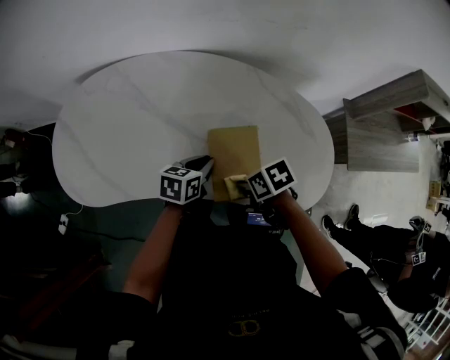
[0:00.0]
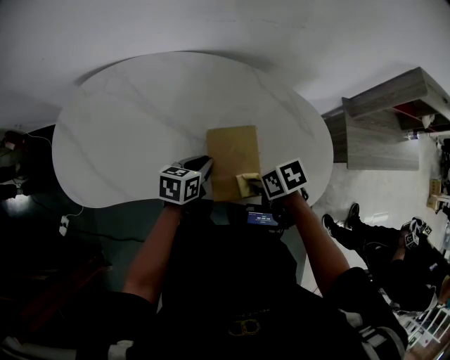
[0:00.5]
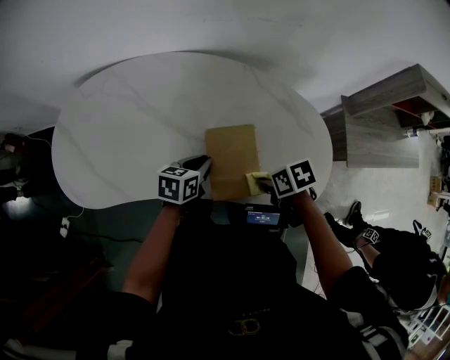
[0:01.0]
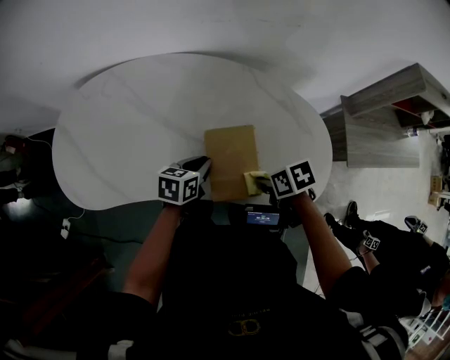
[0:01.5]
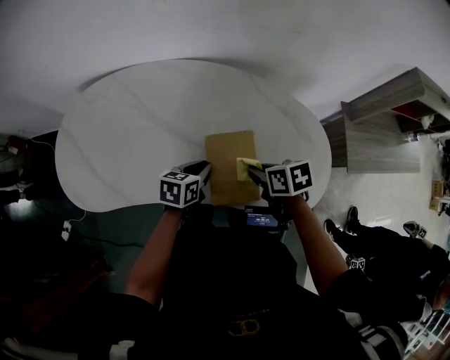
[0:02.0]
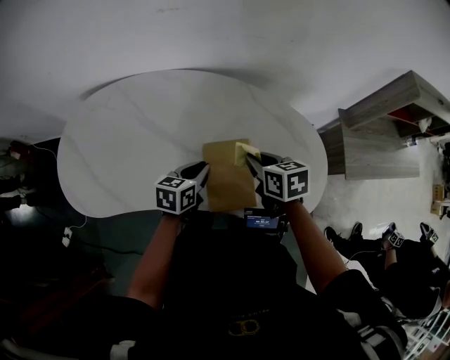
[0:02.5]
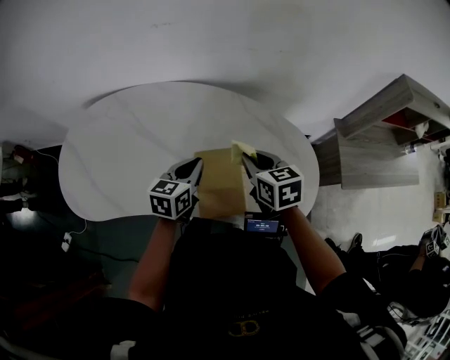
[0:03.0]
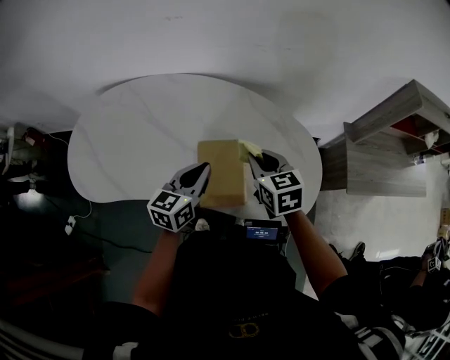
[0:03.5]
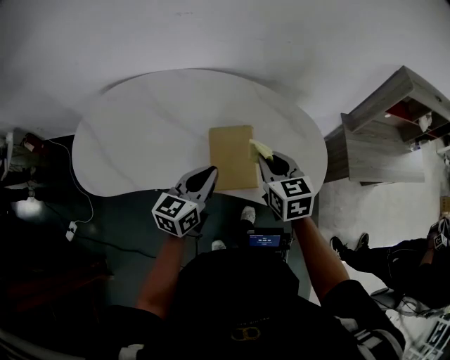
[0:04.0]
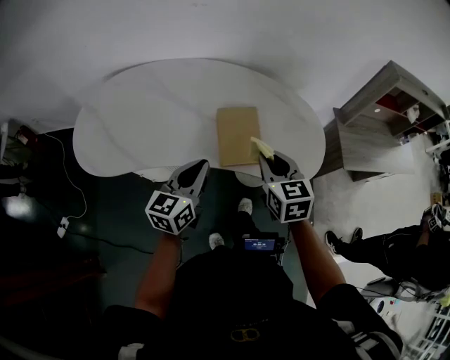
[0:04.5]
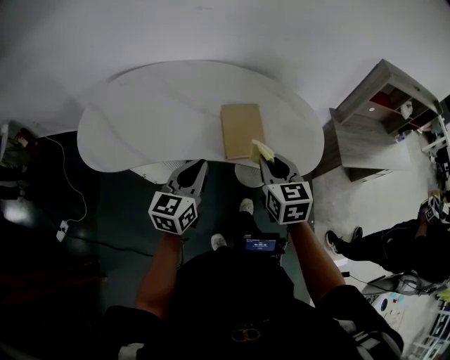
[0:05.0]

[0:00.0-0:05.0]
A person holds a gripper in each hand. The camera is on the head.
0:00.0 to 0:02.5: The right gripper moves approximately 15 cm, and swivels some 40 degrees.
0:02.5 to 0:05.0: Both grippers travel together backward and upward, roughly 25 cm. The left gripper changes its angle by some 30 degrees. Meanwhile the right gripper turns by about 30 degrees.

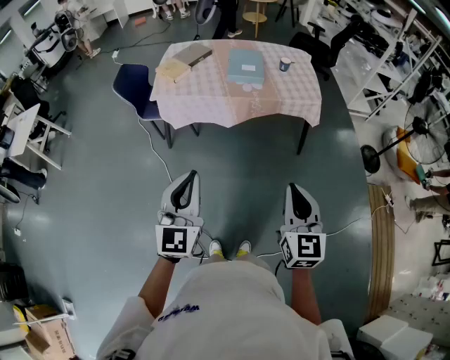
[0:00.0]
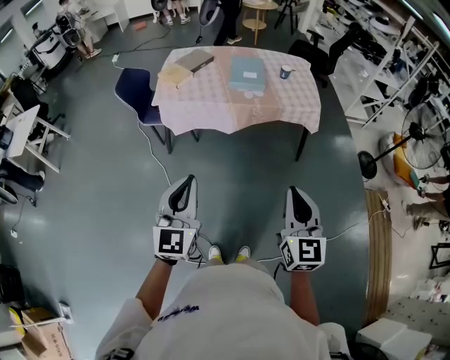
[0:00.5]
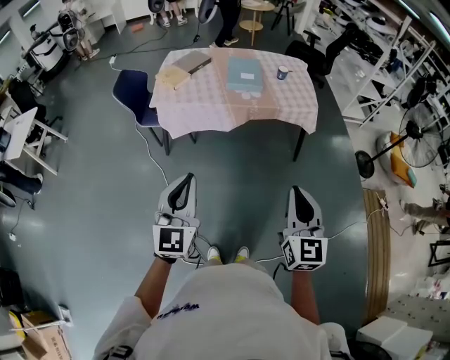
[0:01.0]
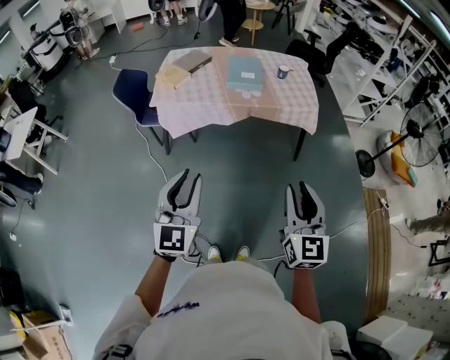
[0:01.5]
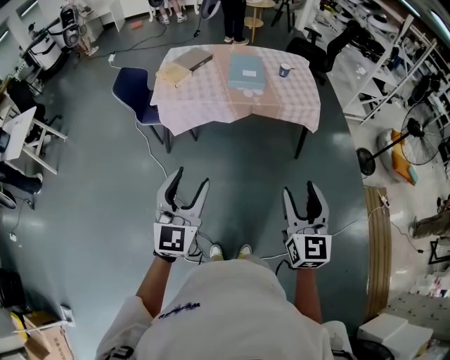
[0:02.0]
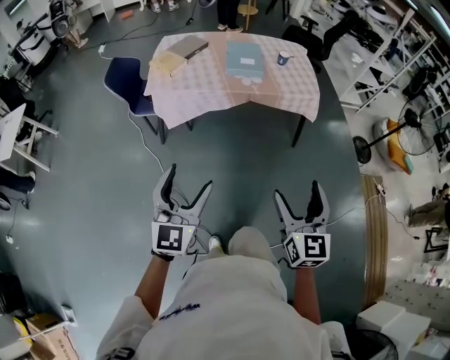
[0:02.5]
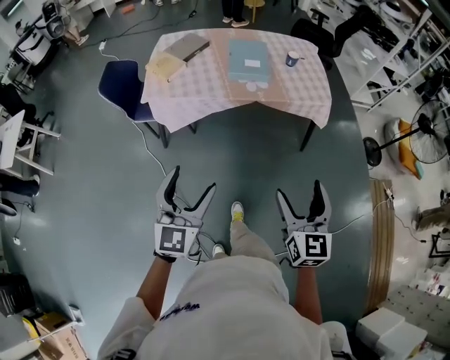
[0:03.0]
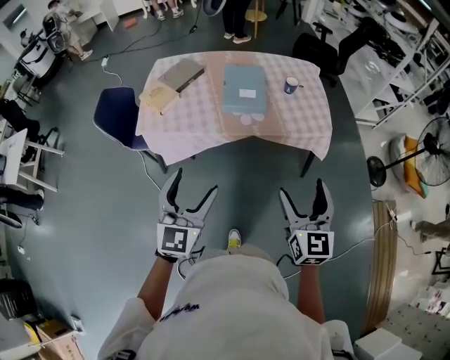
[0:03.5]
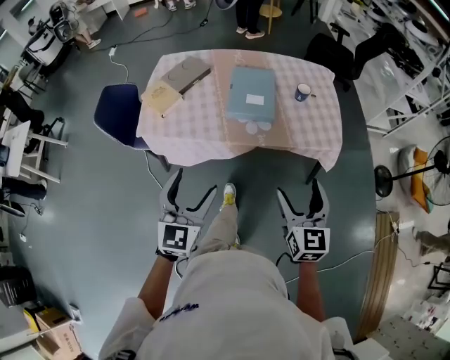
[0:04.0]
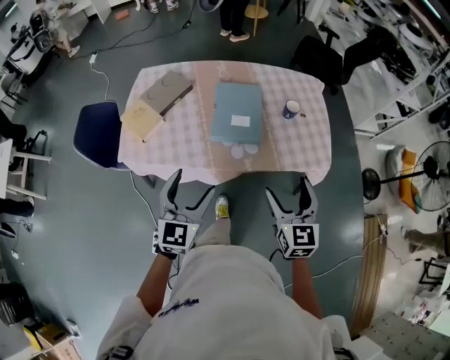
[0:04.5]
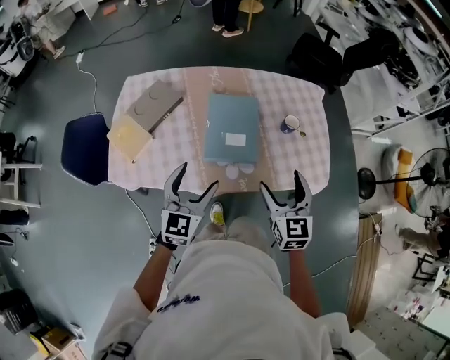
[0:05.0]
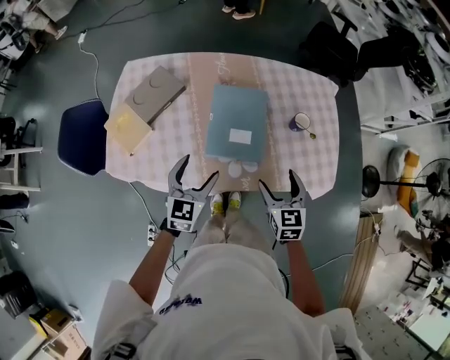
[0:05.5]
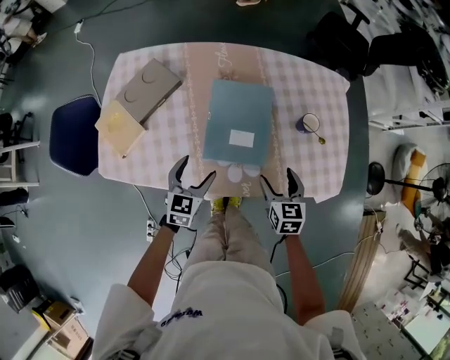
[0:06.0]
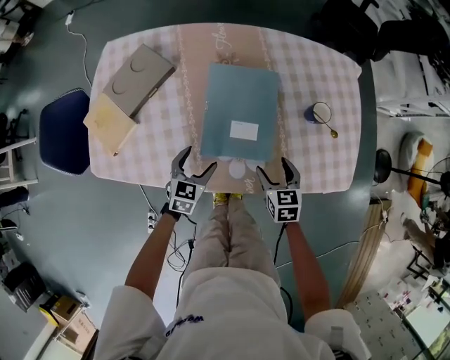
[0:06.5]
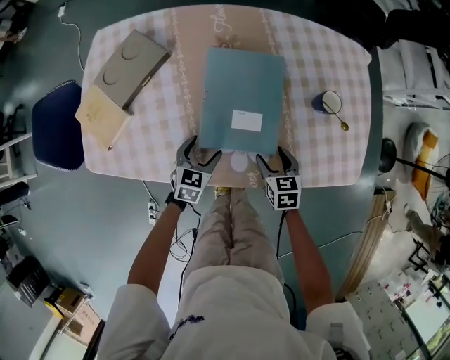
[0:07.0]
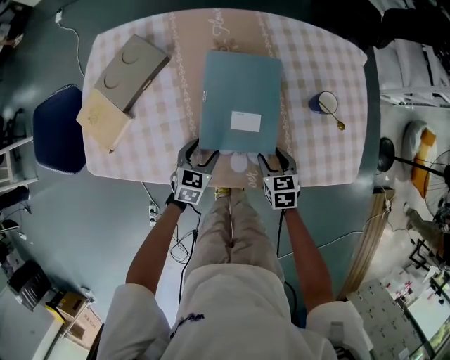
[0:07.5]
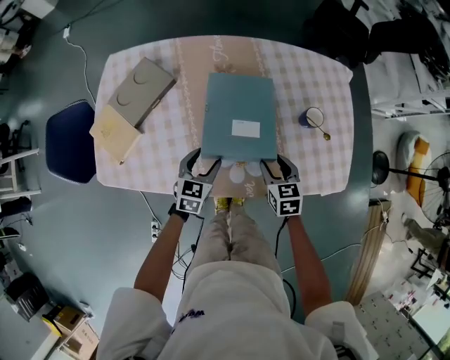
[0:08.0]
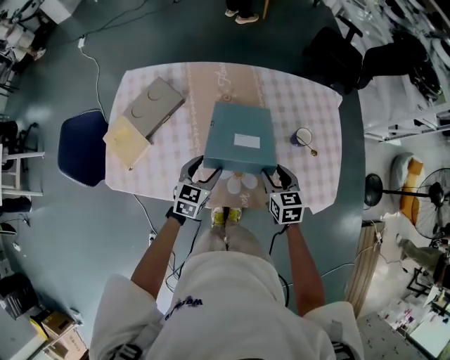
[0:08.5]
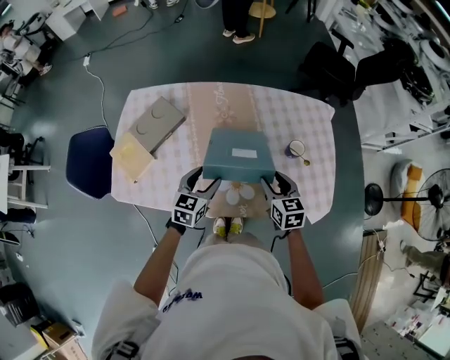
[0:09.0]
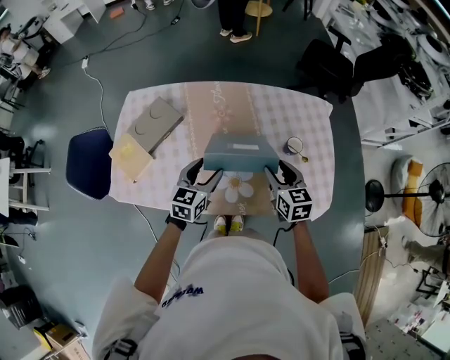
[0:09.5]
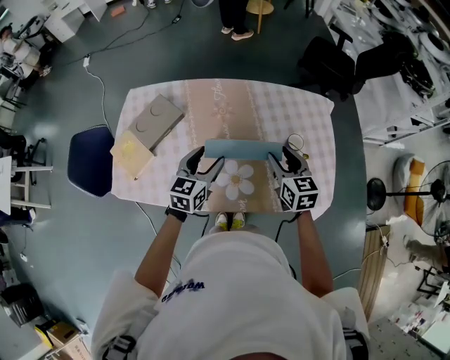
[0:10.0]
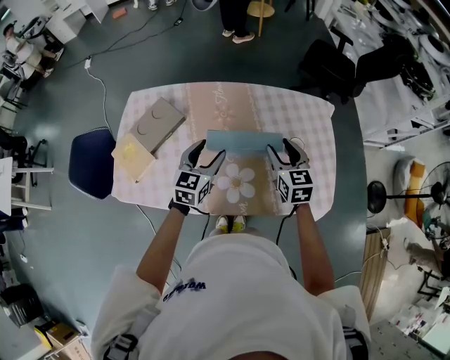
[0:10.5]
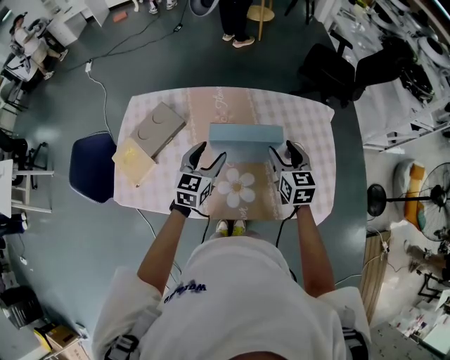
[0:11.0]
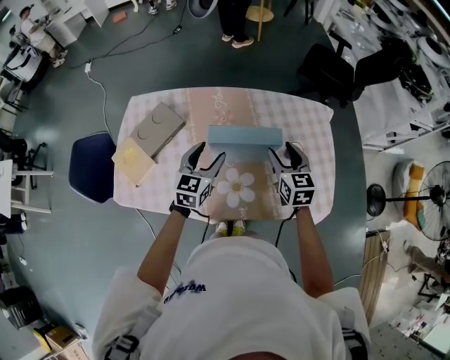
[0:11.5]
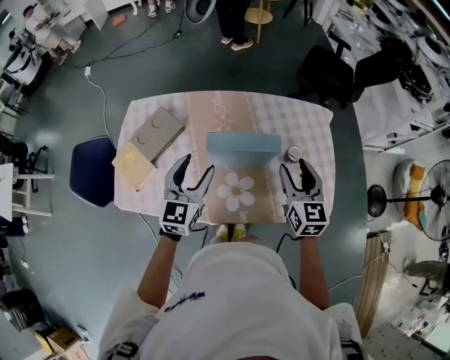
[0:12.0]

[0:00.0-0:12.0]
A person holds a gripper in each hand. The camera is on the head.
0:00.0 to 0:02.0: The left gripper opens; the right gripper opens.
0:02.0 to 0:04.0: The two grippers go roughly 40 cm forward. The right gripper opens.
0:04.0 to 0:06.0: Both grippers move forward and downward, about 40 cm. The left gripper turns by about 20 degrees, while the right gripper swivels roughly 30 degrees.
0:06.0 to 0:08.0: The two grippers go approximately 5 cm downward. The right gripper closes.
0:08.0 to 0:10.0: The two grippers go approximately 20 cm upward.
0:10.0 to 0:12.0: The grippers both shift upward by some 10 cm.

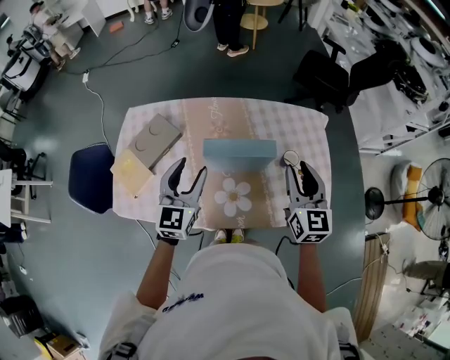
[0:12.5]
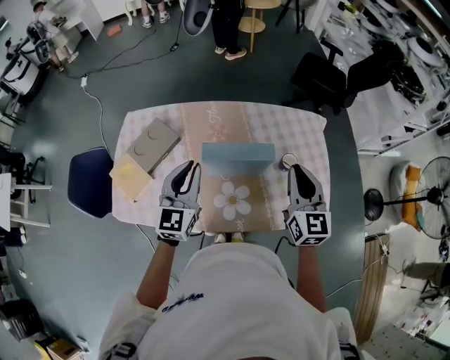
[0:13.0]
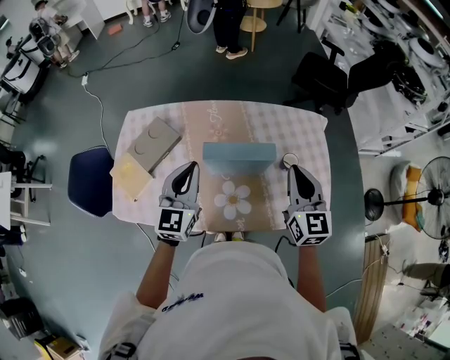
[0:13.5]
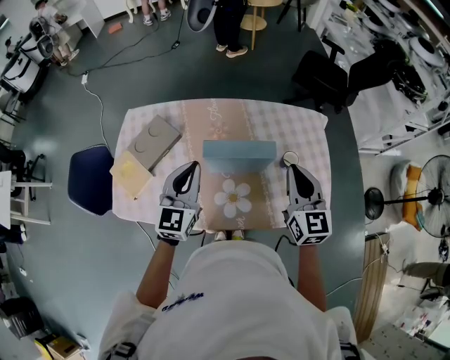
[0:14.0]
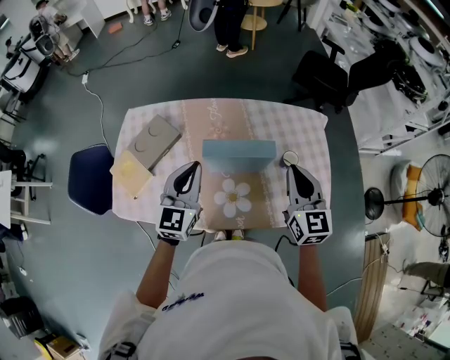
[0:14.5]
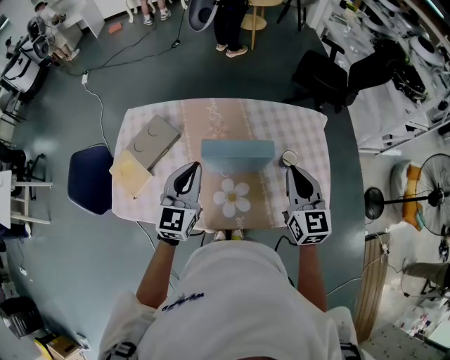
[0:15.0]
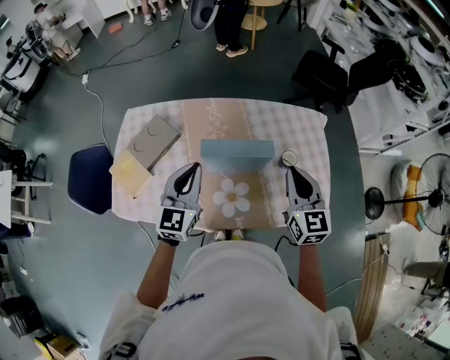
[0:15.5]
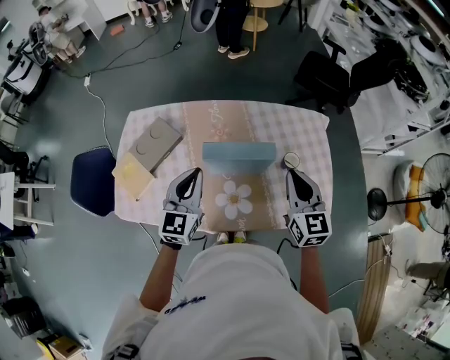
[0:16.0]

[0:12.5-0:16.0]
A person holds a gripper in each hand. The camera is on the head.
0:12.5 to 0:14.5: The left gripper closes up.
0:14.5 to 0:16.0: There are only small adjustments of the grippers.

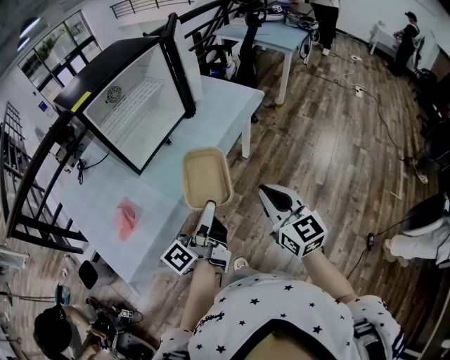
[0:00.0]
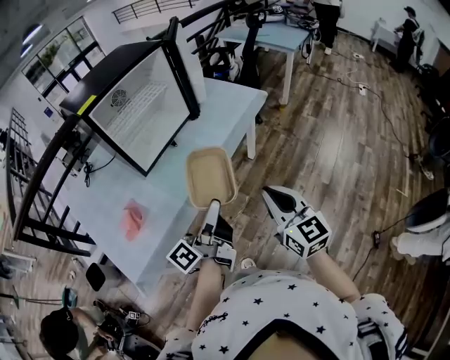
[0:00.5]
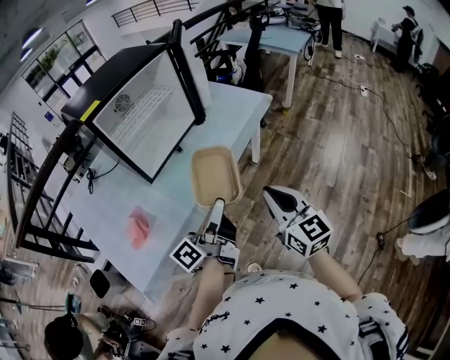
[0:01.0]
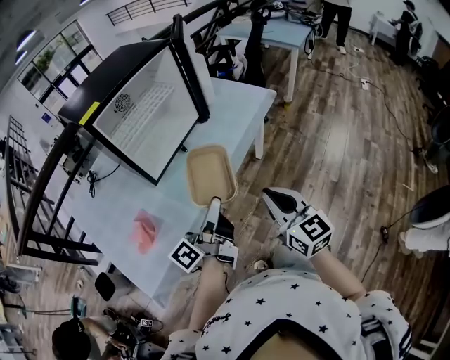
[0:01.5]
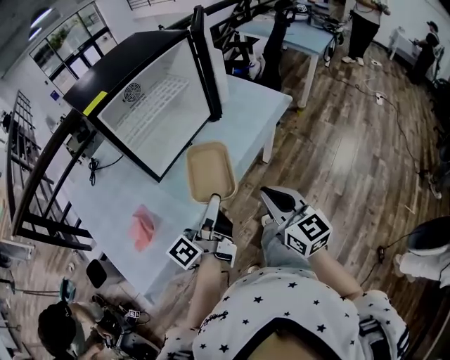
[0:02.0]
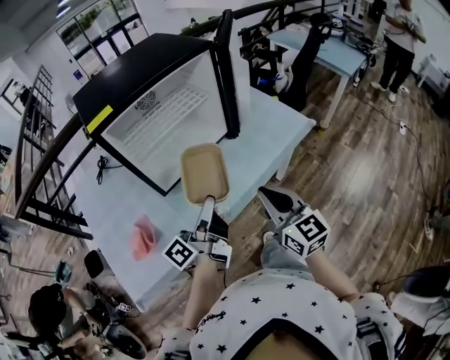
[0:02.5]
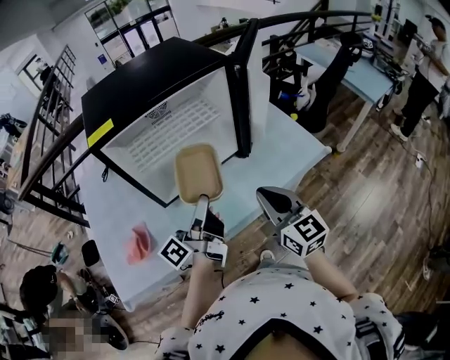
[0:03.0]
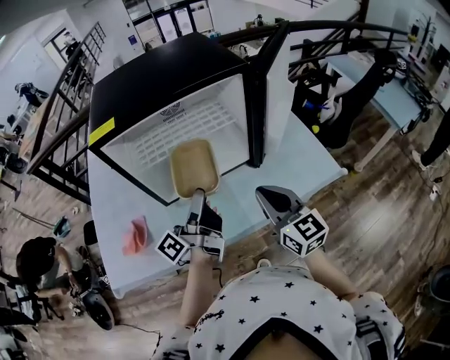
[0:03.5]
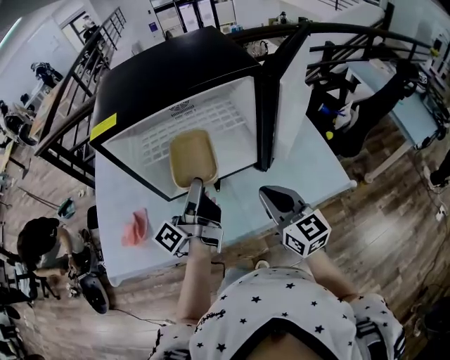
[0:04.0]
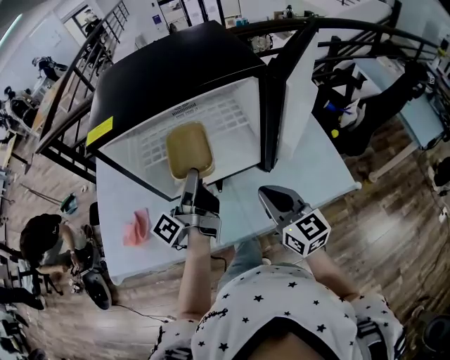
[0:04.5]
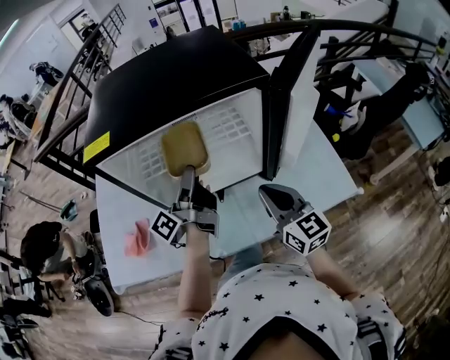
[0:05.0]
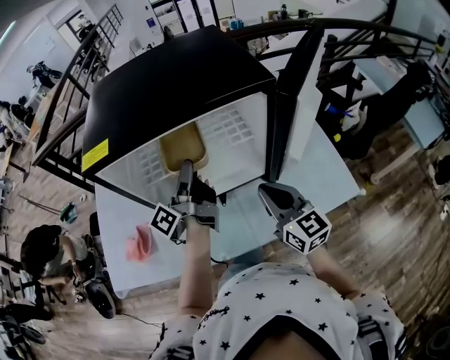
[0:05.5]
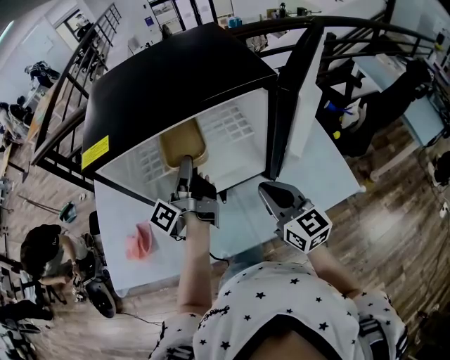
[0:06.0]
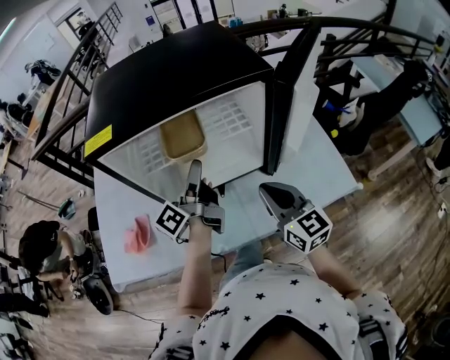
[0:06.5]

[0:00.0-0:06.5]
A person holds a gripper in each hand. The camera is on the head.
0:00.0 to 0:02.0: The grippers both shift forward and to the left by some 10 cm.
0:02.0 to 0:04.5: The right gripper ends up roughly 30 cm from where it was, and swivels some 40 degrees; the left gripper changes place by about 30 cm, and swivels roughly 40 degrees.
